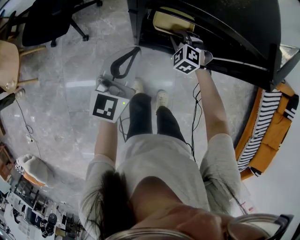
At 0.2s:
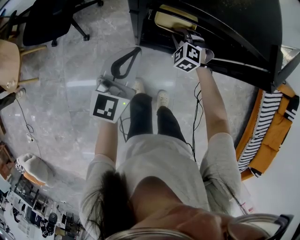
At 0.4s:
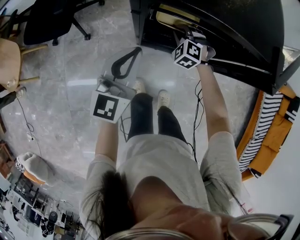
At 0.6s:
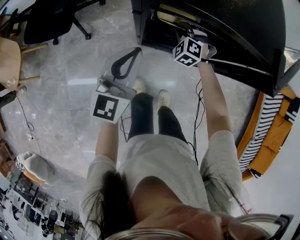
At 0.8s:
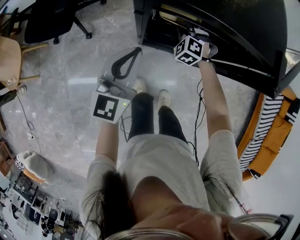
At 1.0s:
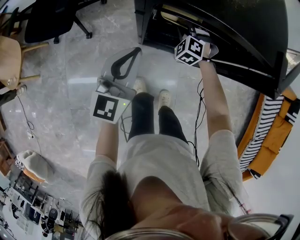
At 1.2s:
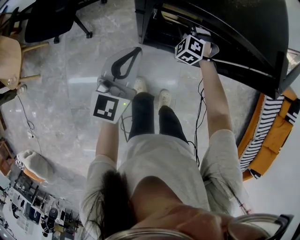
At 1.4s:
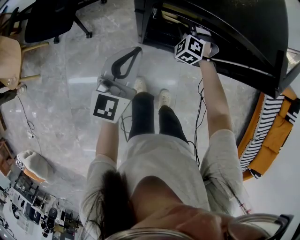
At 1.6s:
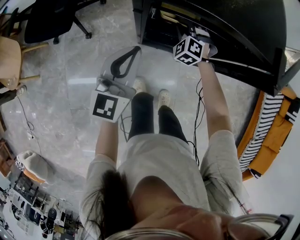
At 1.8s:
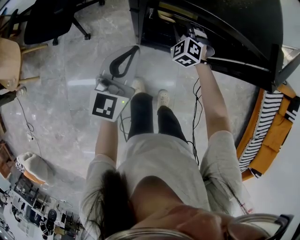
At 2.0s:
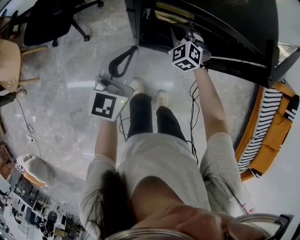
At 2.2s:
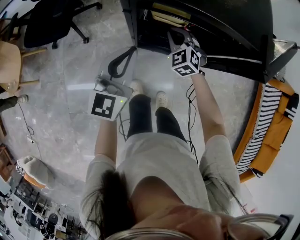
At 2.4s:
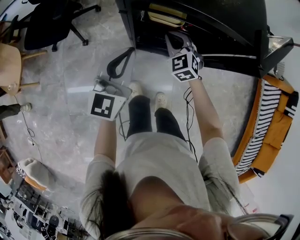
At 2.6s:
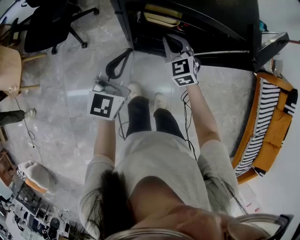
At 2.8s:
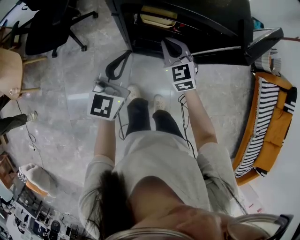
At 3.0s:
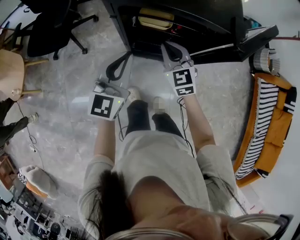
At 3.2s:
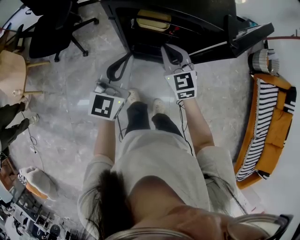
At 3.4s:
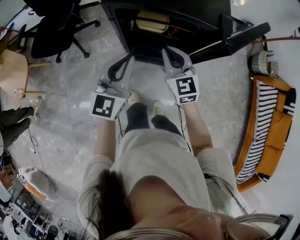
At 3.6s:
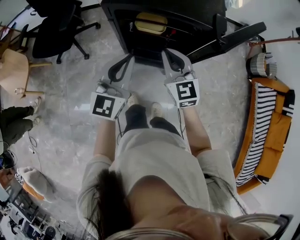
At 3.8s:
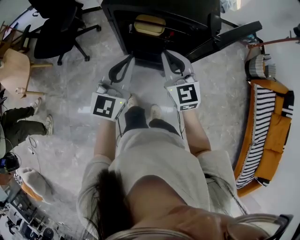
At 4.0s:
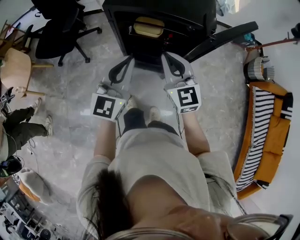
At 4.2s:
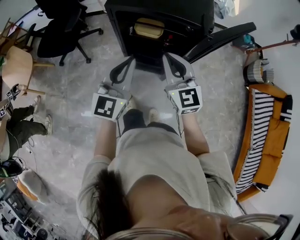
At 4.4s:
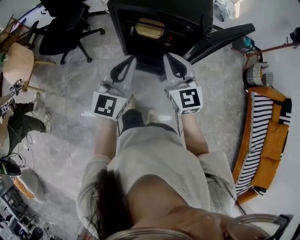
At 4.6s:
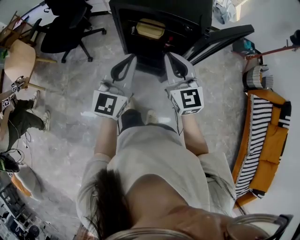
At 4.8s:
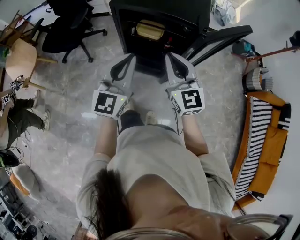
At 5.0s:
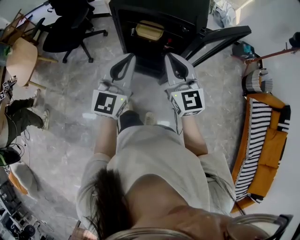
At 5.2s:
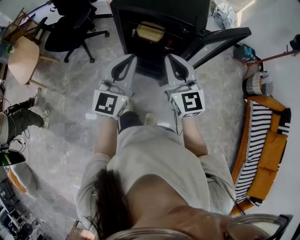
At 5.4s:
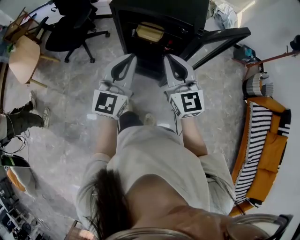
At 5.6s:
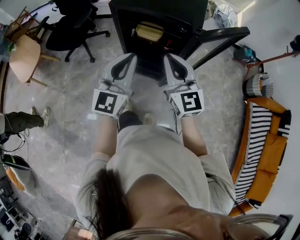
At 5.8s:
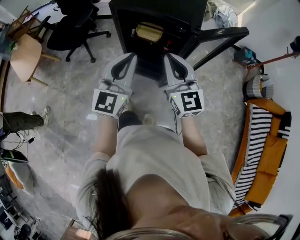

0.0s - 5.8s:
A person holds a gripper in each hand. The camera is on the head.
0.0s - 1.4s: The right gripper goes some 5 cm forward.
1.4s - 2.8s: The left gripper travels upward by about 5 cm; the right gripper moves upward and backward, roughly 20 cm, and rotates about 50 degrees.
2.8s - 4.4s: The right gripper heads upward and backward, covering about 25 cm, and rotates about 20 degrees. Meanwhile the left gripper travels backward, upward and to the right by about 20 cm.
4.4s - 5.8s: The right gripper travels backward by about 5 cm. Meanwhile the left gripper ends up roughly 5 cm from where it was.

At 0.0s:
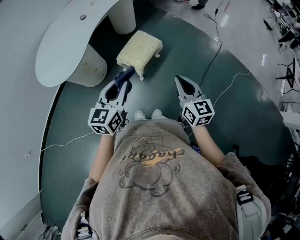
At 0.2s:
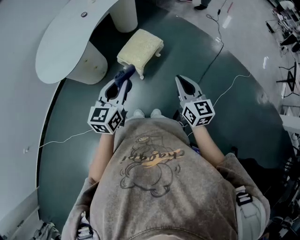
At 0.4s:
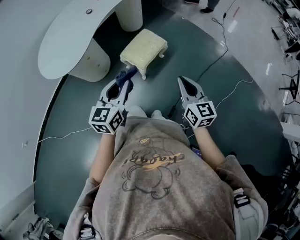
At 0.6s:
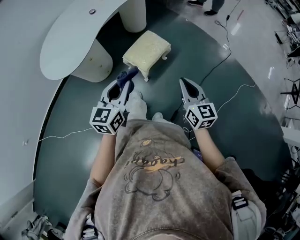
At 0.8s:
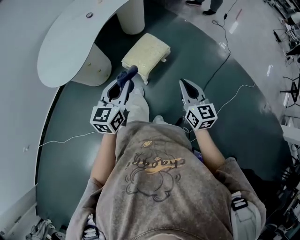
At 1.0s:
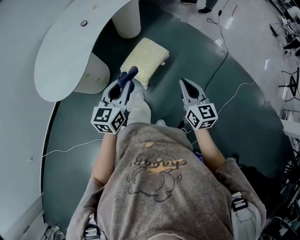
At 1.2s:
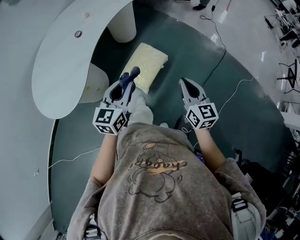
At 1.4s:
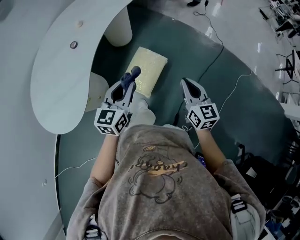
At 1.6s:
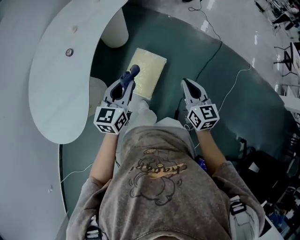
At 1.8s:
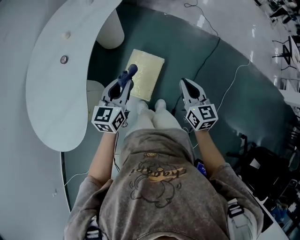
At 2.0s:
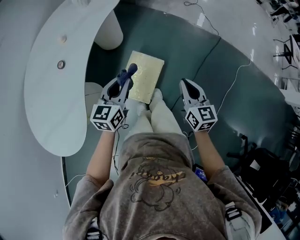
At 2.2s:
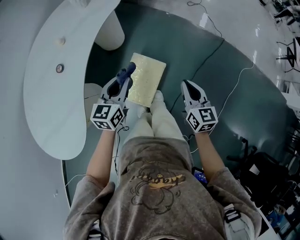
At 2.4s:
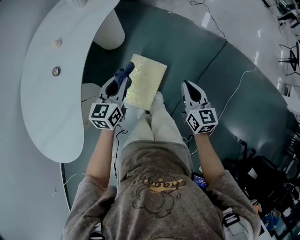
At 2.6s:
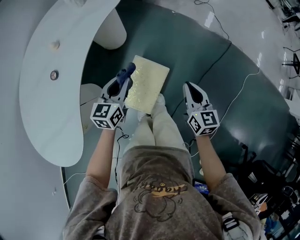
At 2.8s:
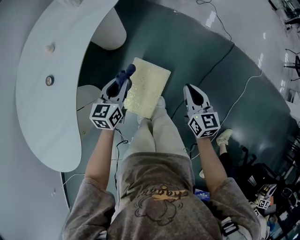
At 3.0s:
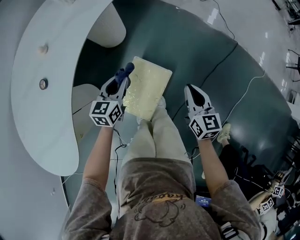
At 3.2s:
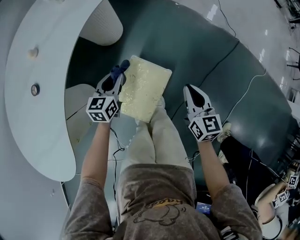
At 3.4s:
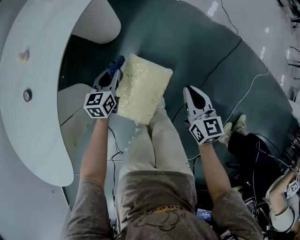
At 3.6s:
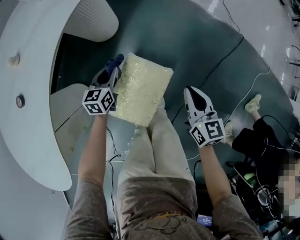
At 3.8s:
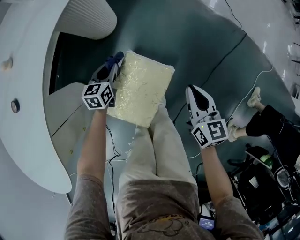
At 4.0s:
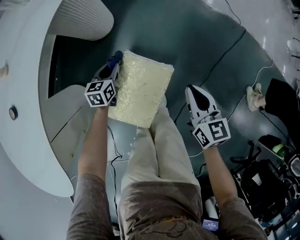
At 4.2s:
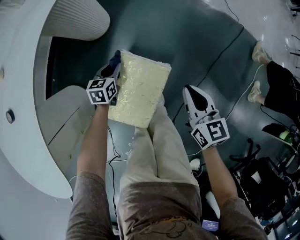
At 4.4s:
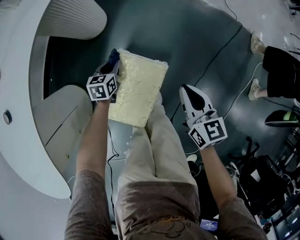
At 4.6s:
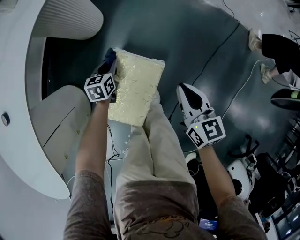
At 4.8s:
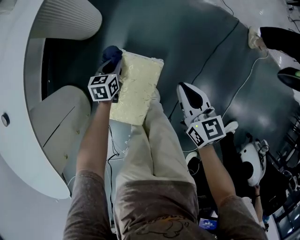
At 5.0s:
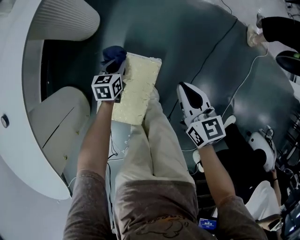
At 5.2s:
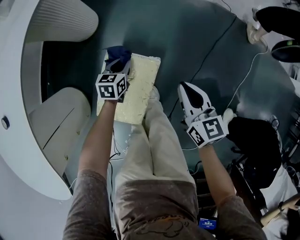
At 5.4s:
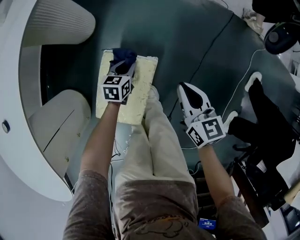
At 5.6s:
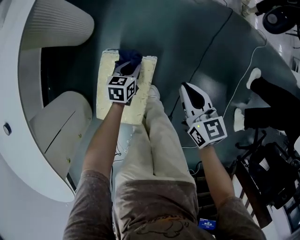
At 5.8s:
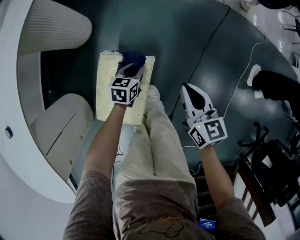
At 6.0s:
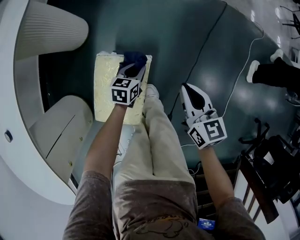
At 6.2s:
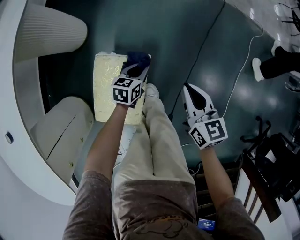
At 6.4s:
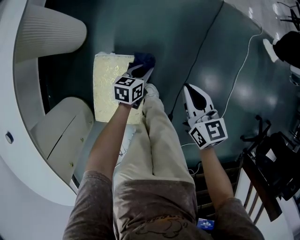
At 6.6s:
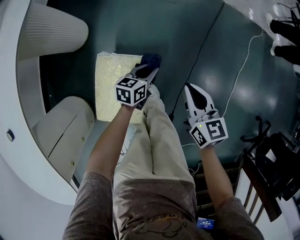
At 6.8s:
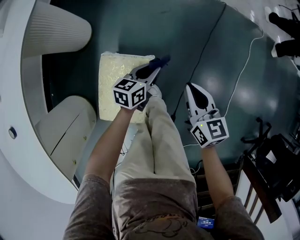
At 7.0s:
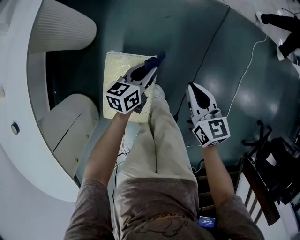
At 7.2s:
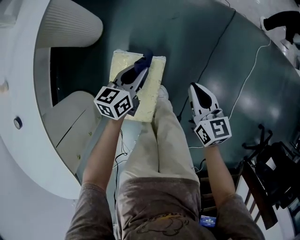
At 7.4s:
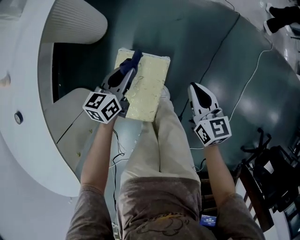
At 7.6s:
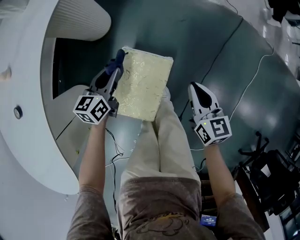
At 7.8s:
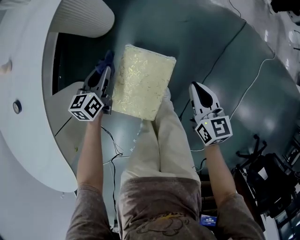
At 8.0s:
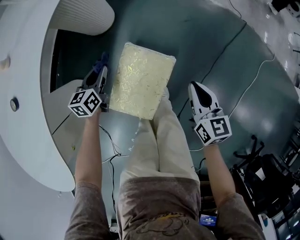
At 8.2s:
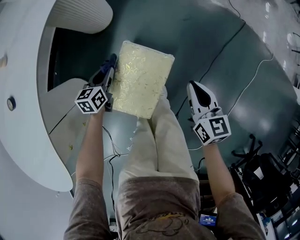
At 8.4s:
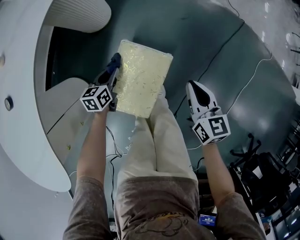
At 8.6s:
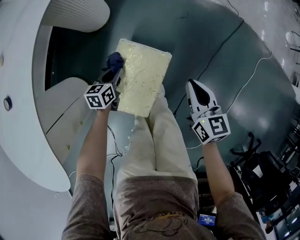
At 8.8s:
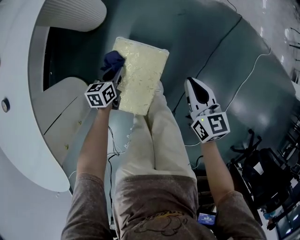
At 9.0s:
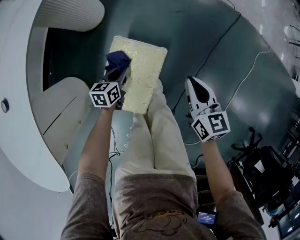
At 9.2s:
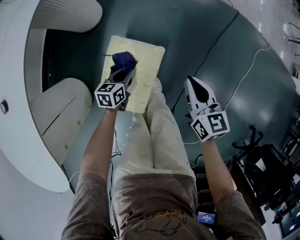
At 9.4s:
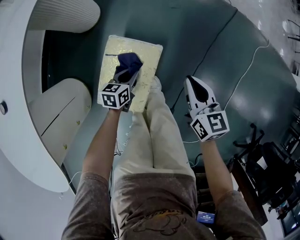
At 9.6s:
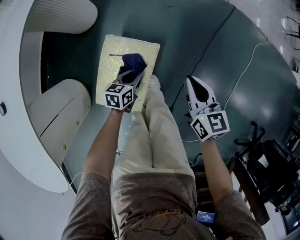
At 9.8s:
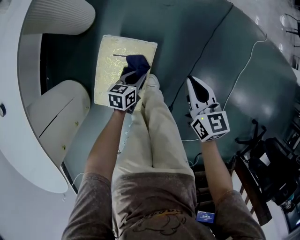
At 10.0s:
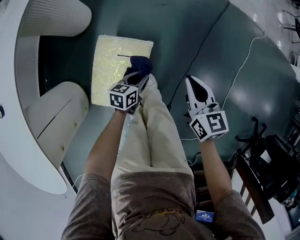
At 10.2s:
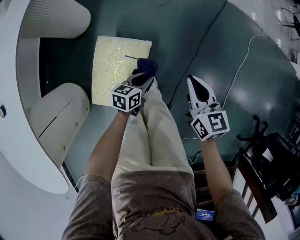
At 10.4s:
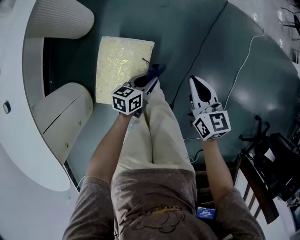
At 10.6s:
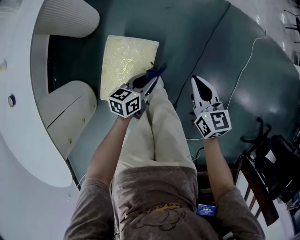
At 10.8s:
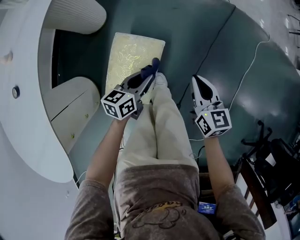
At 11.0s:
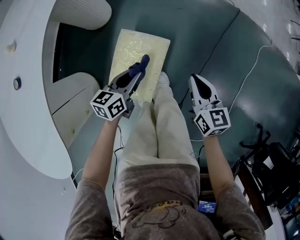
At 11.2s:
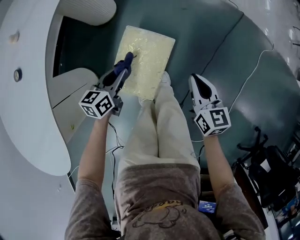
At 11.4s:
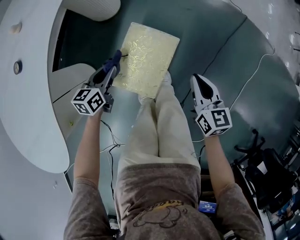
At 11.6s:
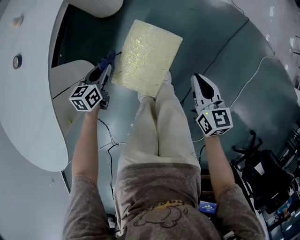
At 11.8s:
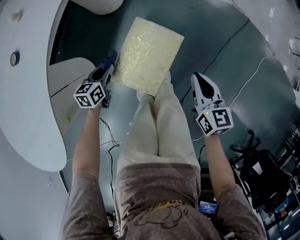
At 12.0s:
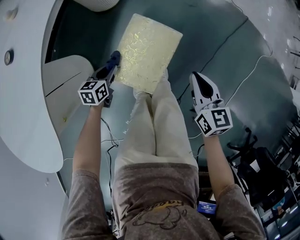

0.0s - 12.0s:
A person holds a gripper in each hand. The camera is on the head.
0.0s - 1.6s: Both grippers travel together forward, some 30 cm.
1.6s - 3.0s: The right gripper travels forward and downward by approximately 25 cm; the left gripper travels downward and forward by roughly 30 cm.
3.0s - 4.4s: The right gripper shifts approximately 10 cm downward; the left gripper heads downward, covering some 25 cm.
4.4s - 6.0s: The right gripper moves to the right, about 5 cm; the left gripper moves to the right, roughly 20 cm, and rotates some 20 degrees.
6.0s - 7.6s: The left gripper travels to the left and upward by roughly 25 cm, and swivels roughly 20 degrees; the right gripper moves to the left, roughly 5 cm.
7.6s - 9.0s: The left gripper travels downward and backward by approximately 15 cm.
9.0s - 10.4s: The right gripper is displaced to the right by roughly 10 cm. Meanwhile the left gripper heads to the right, covering some 20 cm, and swivels some 20 degrees.
10.4s - 12.0s: The right gripper is displaced to the left by approximately 10 cm, while the left gripper travels to the left by approximately 30 cm, and turns by about 30 degrees.

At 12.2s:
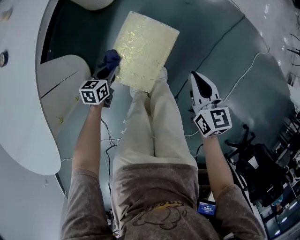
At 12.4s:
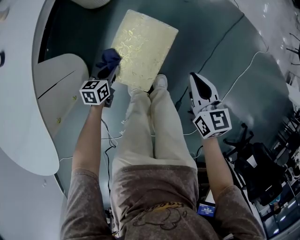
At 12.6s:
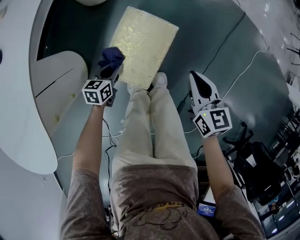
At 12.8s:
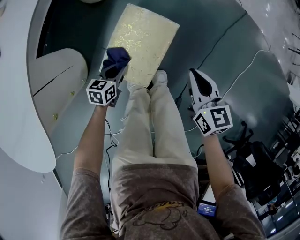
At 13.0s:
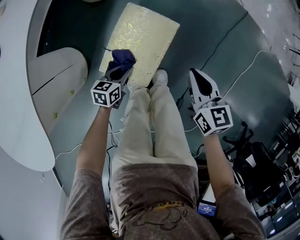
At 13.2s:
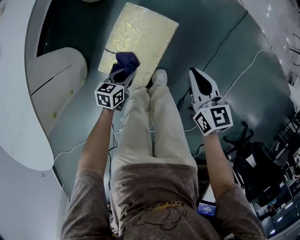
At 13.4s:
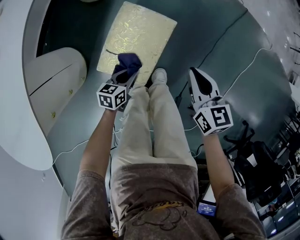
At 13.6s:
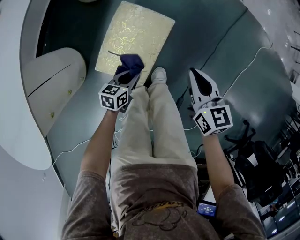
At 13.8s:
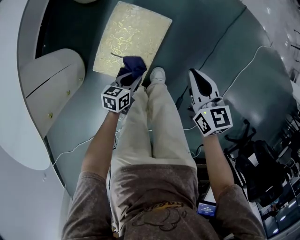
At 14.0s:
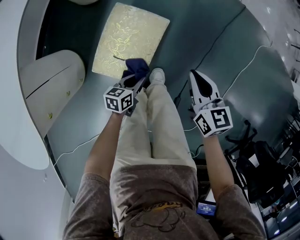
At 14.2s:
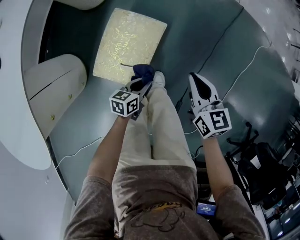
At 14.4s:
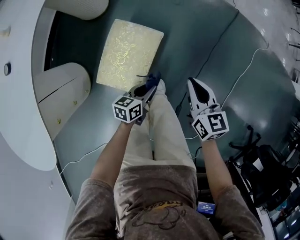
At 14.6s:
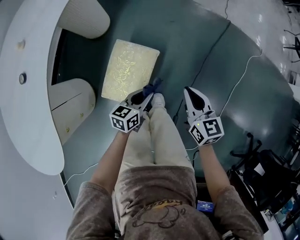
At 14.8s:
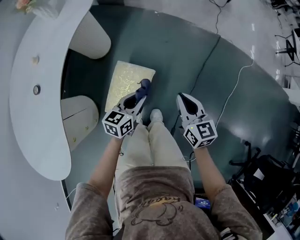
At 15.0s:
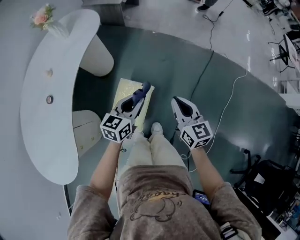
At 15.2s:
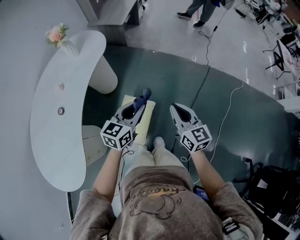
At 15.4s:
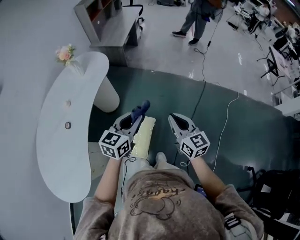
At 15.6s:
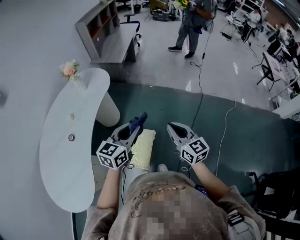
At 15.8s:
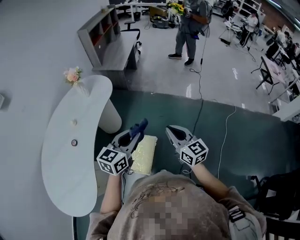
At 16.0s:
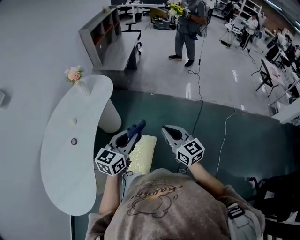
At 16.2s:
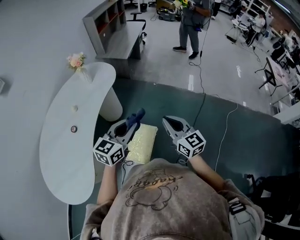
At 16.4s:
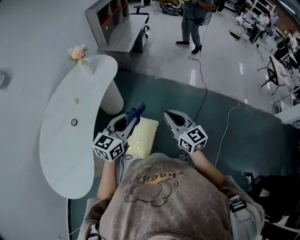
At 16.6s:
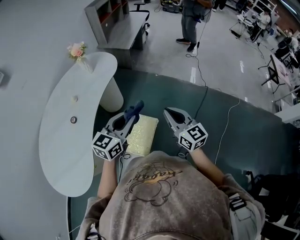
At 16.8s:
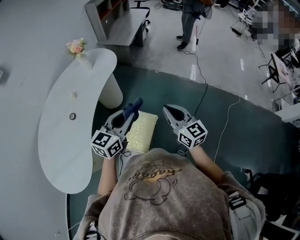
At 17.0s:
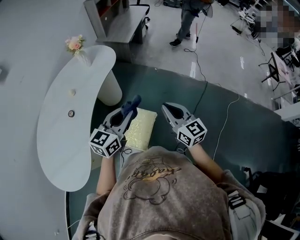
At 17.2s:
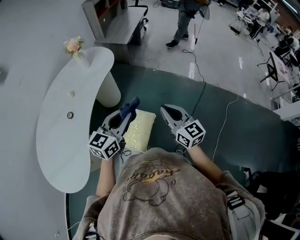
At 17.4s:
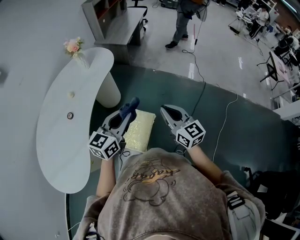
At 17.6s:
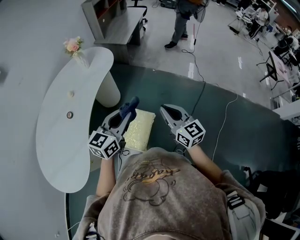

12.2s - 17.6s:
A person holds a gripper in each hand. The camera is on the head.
12.2s - 13.6s: The left gripper goes approximately 15 cm to the right.
13.6s - 15.0s: The right gripper shifts approximately 25 cm upward. The left gripper shifts some 40 cm upward and forward, and swivels approximately 30 degrees.
15.0s - 16.2s: The grippers both shift upward by about 20 cm.
16.2s - 17.6s: The grippers make only small movements.
